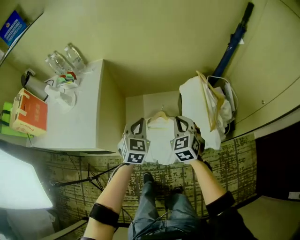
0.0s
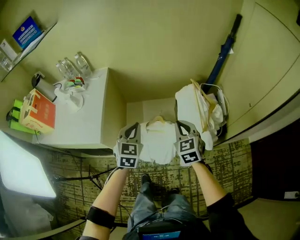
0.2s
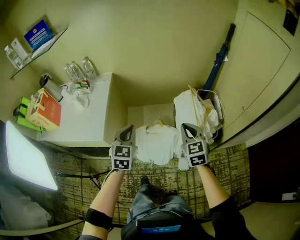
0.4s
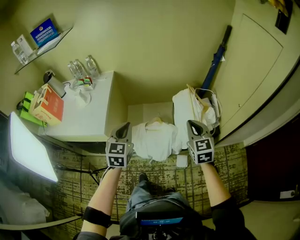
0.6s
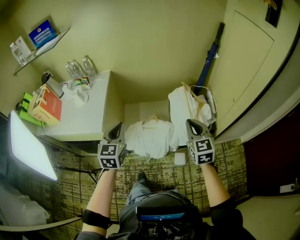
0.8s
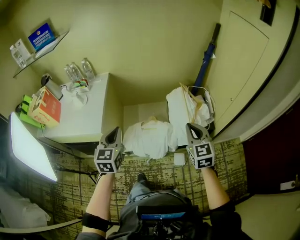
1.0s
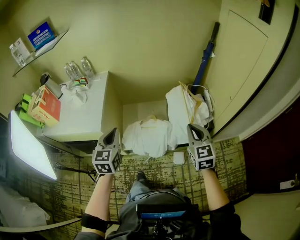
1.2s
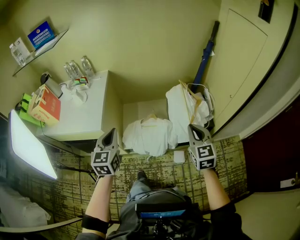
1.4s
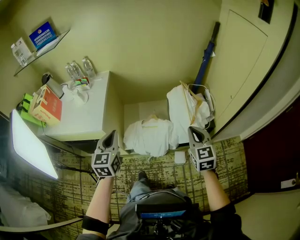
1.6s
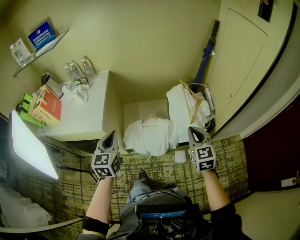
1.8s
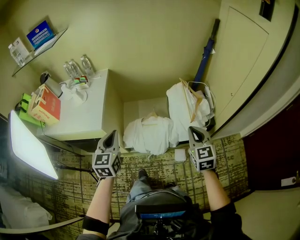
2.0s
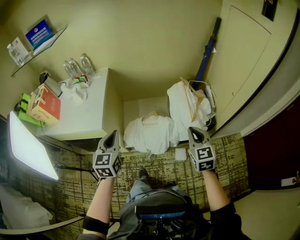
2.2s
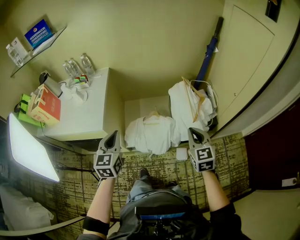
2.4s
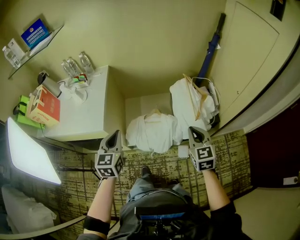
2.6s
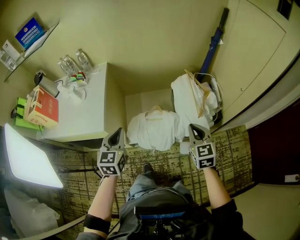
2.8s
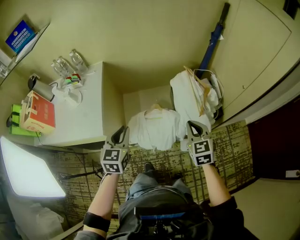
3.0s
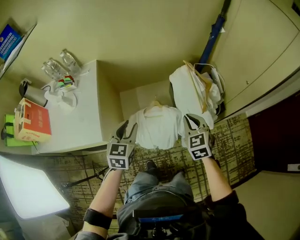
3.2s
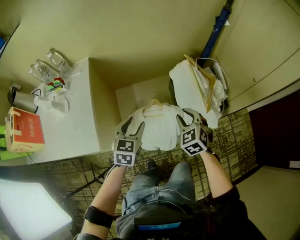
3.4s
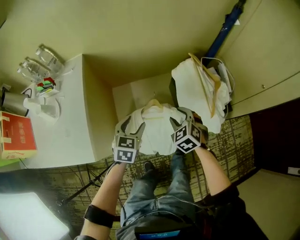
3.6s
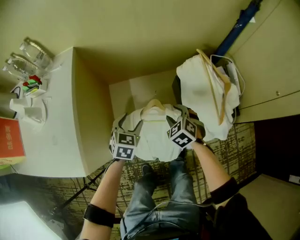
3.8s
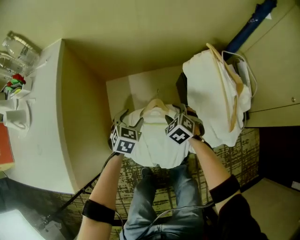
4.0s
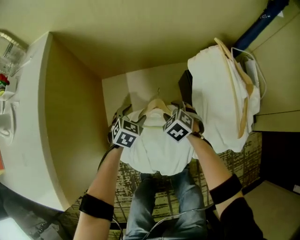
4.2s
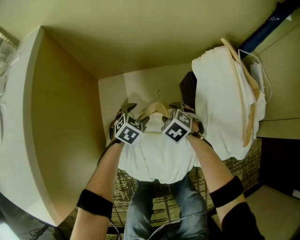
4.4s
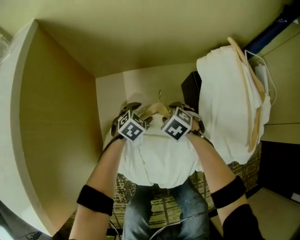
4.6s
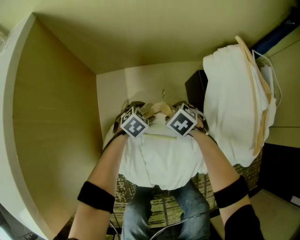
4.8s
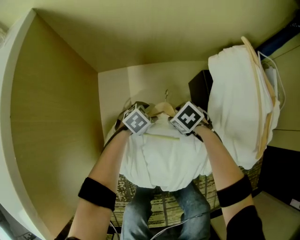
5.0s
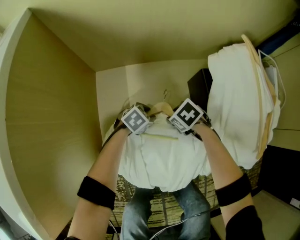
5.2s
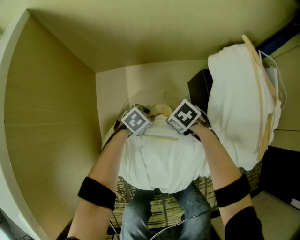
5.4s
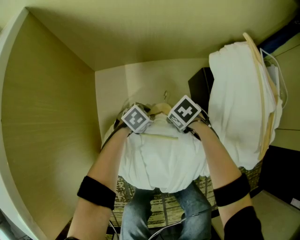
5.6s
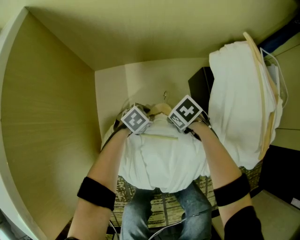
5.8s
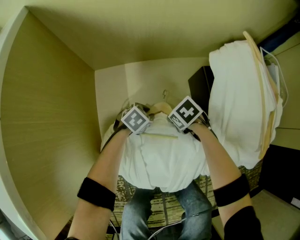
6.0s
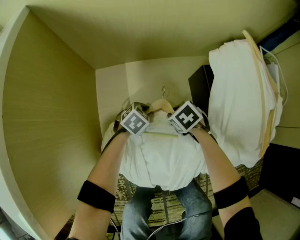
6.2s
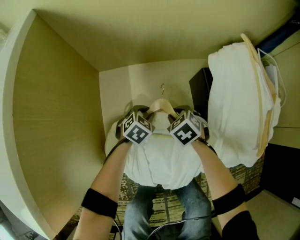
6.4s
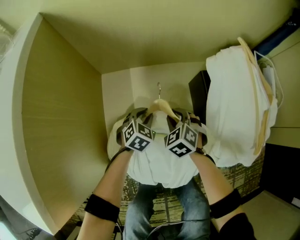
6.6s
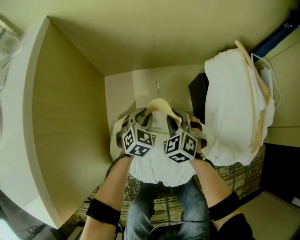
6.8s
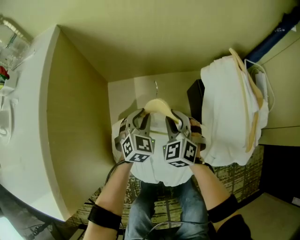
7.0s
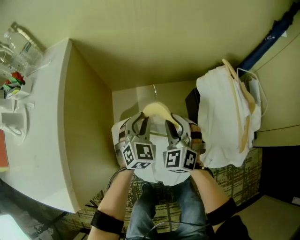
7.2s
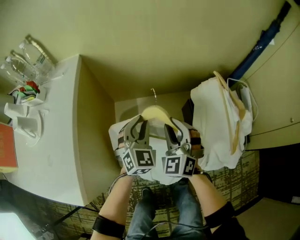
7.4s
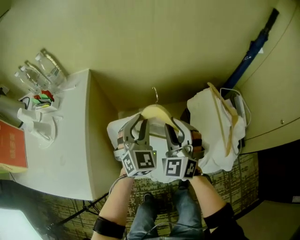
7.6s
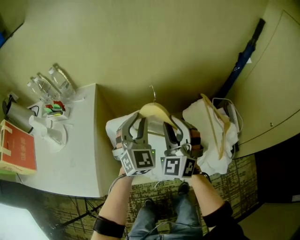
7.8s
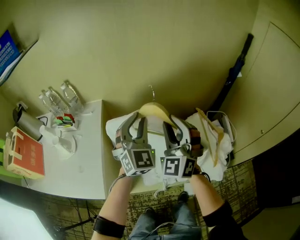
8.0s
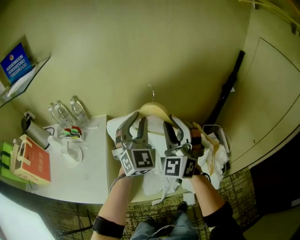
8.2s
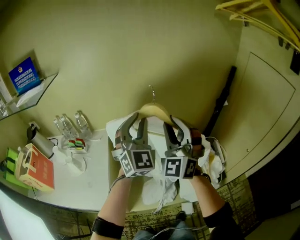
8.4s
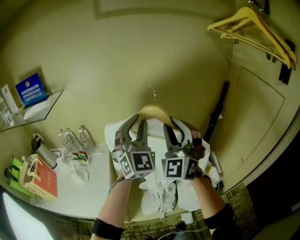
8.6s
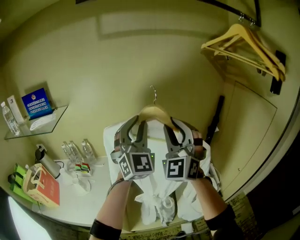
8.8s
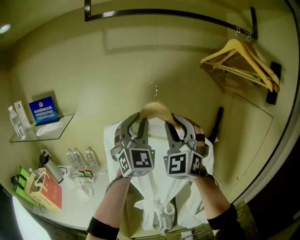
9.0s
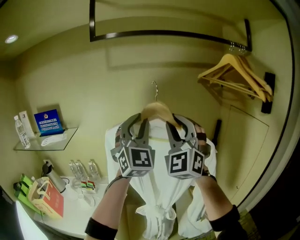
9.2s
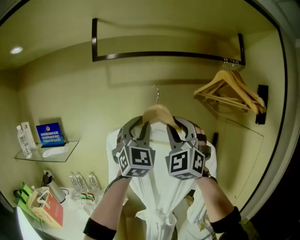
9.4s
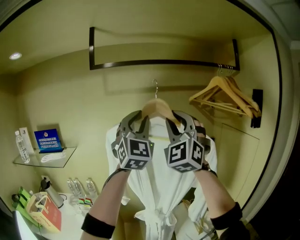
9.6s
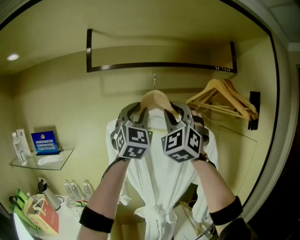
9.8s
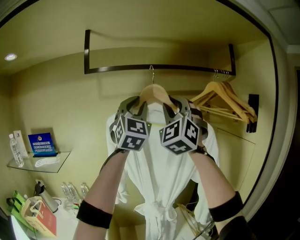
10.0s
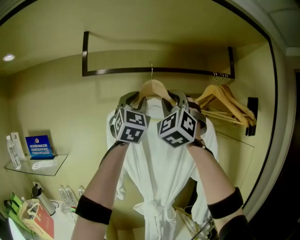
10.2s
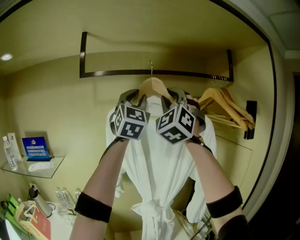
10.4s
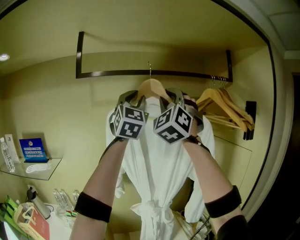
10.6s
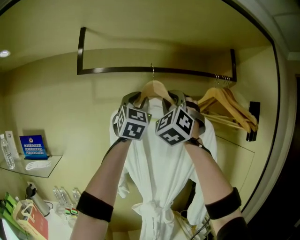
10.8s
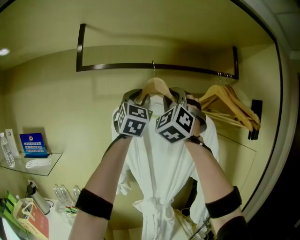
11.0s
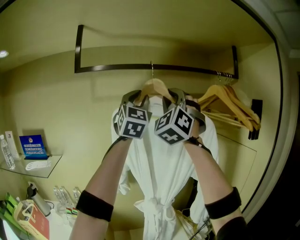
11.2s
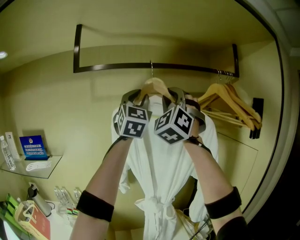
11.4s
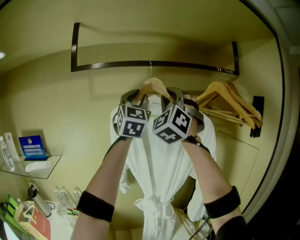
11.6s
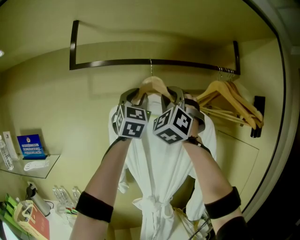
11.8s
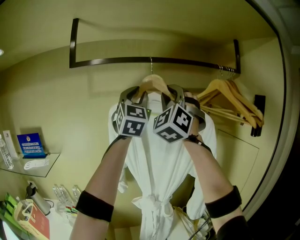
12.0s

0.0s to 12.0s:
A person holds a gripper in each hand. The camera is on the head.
0.0s to 1.6s: The right gripper moves backward, upward and to the right, approximately 30 cm. The left gripper goes approximately 30 cm backward and upward, and rotates roughly 20 degrees.
1.6s to 3.0s: The left gripper is displaced forward and downward by about 10 cm. The right gripper shifts some 10 cm forward, downward and to the left.
3.0s to 4.4s: Both grippers move downward and forward, roughly 60 cm. The left gripper swivels about 40 degrees, and opens up. Meanwhile the right gripper tips its fingers downward by approximately 40 degrees, and opens its fingers.
4.4s to 6.0s: The grippers both shift downward by roughly 10 cm. The left gripper closes its fingers. Meanwhile the right gripper rotates some 30 degrees, and closes up.
6.0s to 7.6s: Both grippers travel together upward, roughly 50 cm. The right gripper tilts its fingers approximately 60 degrees upward; the left gripper points its fingers approximately 40 degrees further upward.
7.6s to 9.0s: Both grippers travel together upward, about 60 cm. The right gripper points its fingers about 30 degrees further upward. The left gripper tips its fingers upward by approximately 40 degrees.
9.0s to 10.4s: The grippers both shift upward by some 25 cm.
10.4s to 12.0s: The grippers both shift forward by approximately 5 cm.

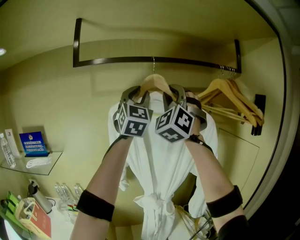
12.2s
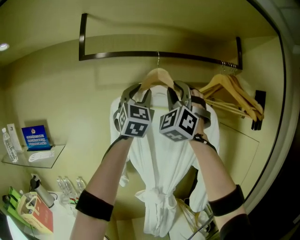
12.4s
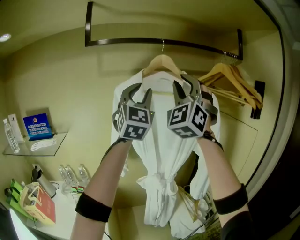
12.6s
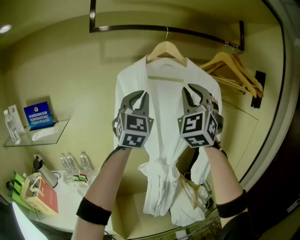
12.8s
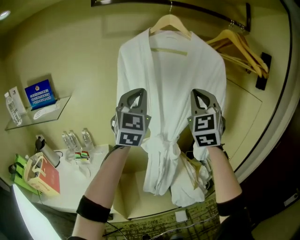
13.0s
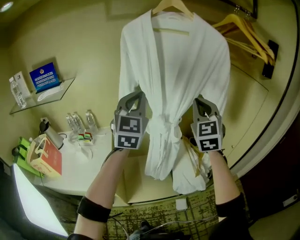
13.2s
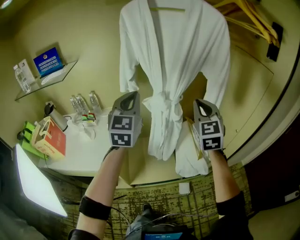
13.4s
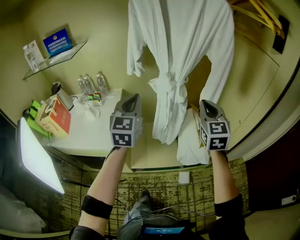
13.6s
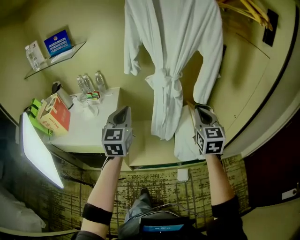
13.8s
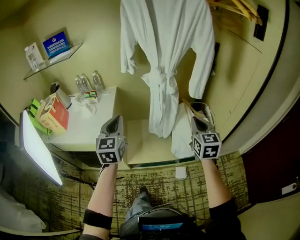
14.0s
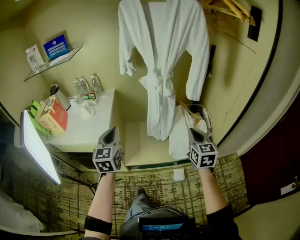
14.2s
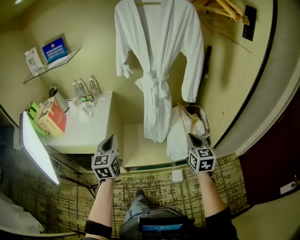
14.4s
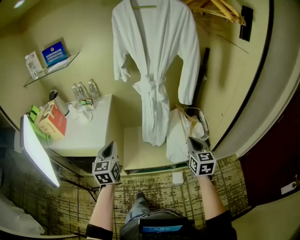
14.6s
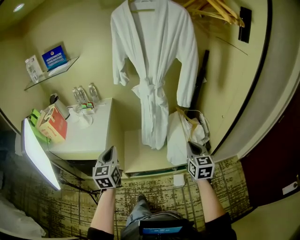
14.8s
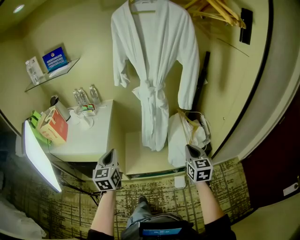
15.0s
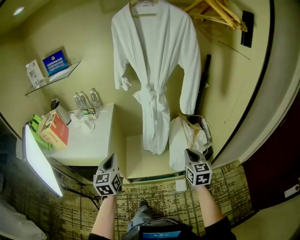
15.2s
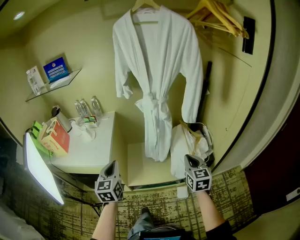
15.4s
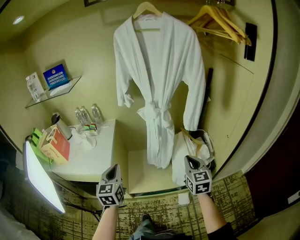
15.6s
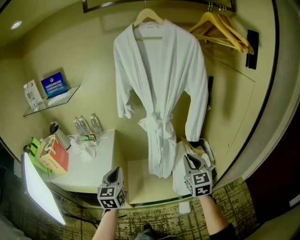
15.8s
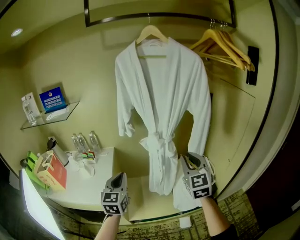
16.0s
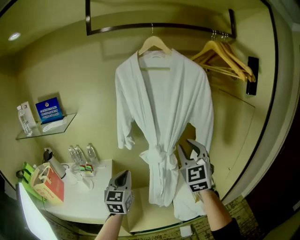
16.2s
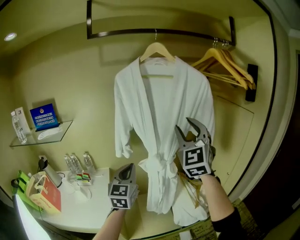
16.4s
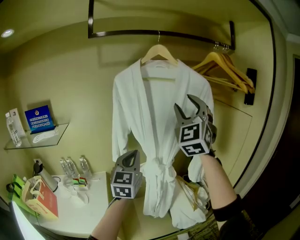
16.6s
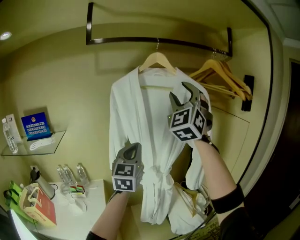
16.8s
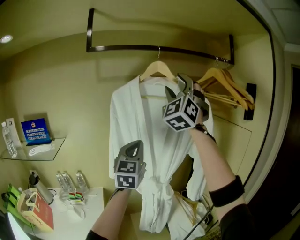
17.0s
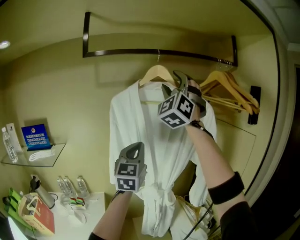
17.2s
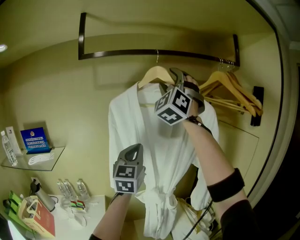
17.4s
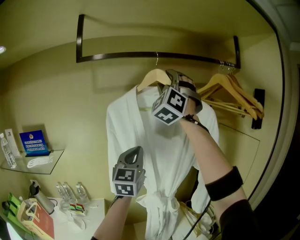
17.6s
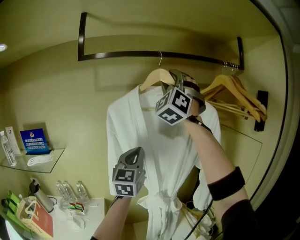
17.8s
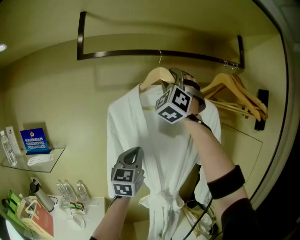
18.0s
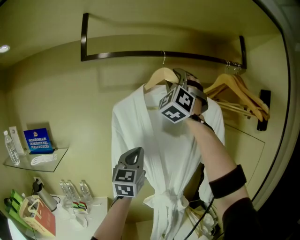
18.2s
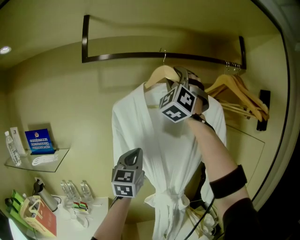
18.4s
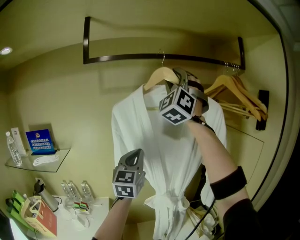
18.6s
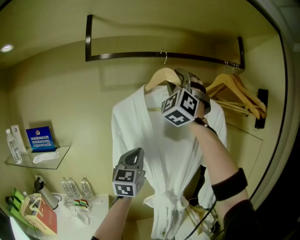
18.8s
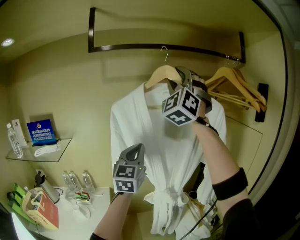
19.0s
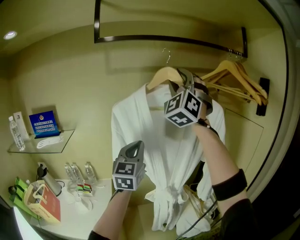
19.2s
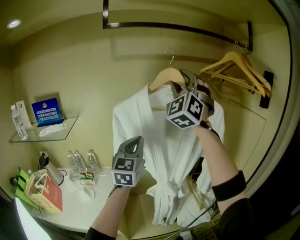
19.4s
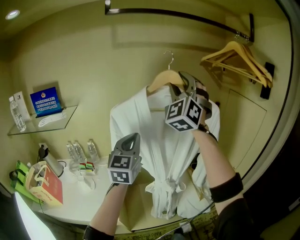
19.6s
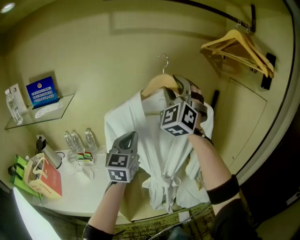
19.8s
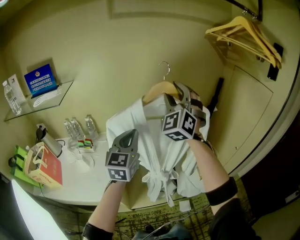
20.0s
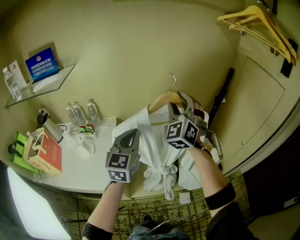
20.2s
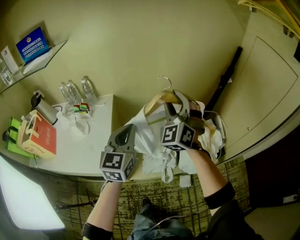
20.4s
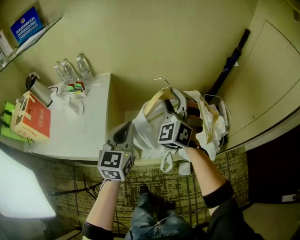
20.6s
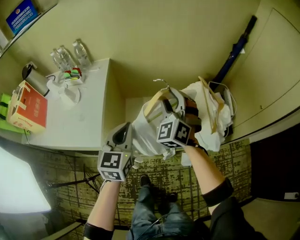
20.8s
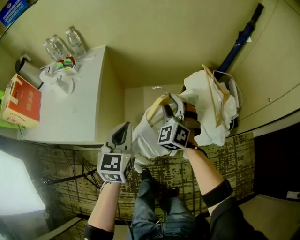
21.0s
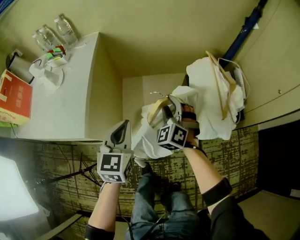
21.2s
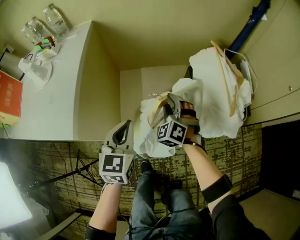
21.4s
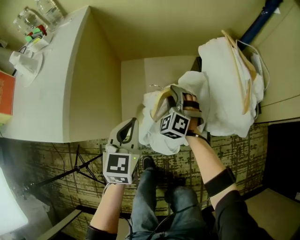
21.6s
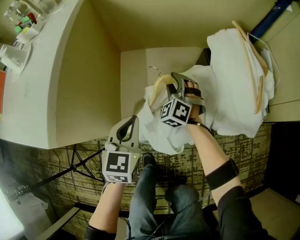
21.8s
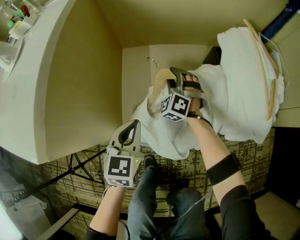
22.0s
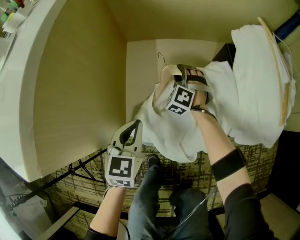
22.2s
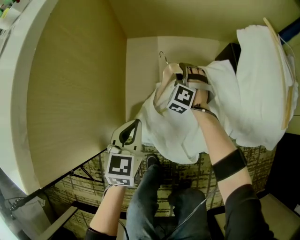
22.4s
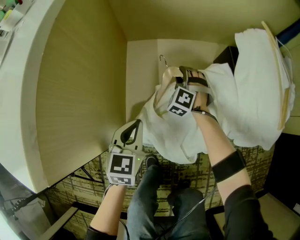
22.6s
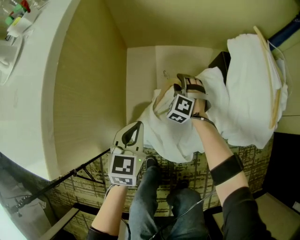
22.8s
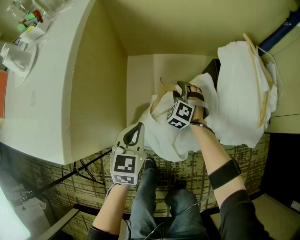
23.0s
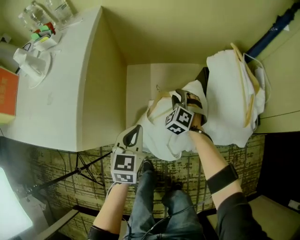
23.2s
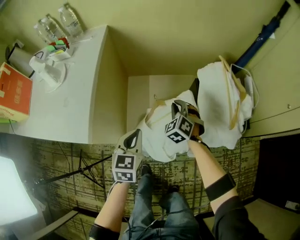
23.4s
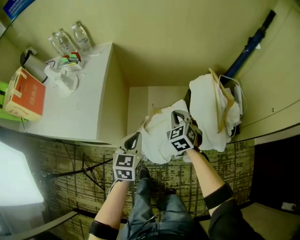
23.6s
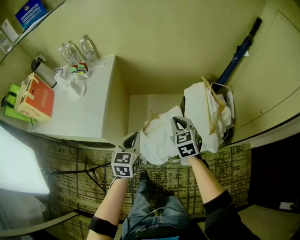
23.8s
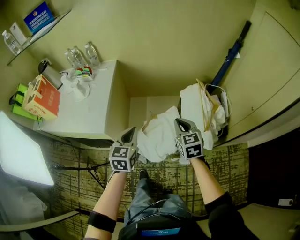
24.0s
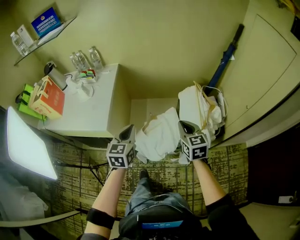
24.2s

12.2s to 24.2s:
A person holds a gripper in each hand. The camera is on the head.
12.2s to 13.8s: Both grippers travel together downward and backward, roughly 60 cm. The right gripper rolls clockwise, seen from behind, by about 60 degrees, and closes up. The left gripper angles its fingers downward, by about 30 degrees, and closes up.
13.8s to 15.2s: The right gripper travels downward and backward by about 15 cm. Meanwhile the left gripper goes approximately 15 cm backward and downward.
15.2s to 16.6s: The left gripper is displaced forward and upward by some 40 cm, and changes its angle by some 40 degrees, while the right gripper goes some 60 cm upward and forward, angles its fingers upward, by approximately 40 degrees, and opens up.
16.6s to 18.2s: The right gripper is displaced upward and forward by approximately 25 cm, and turns by some 20 degrees; the left gripper heads forward and upward, covering roughly 15 cm.
18.2s to 19.8s: The left gripper travels downward, backward and to the left by about 20 cm. Meanwhile the right gripper travels downward and backward by roughly 25 cm.
19.8s to 21.2s: The left gripper moves downward, roughly 50 cm, and turns by about 30 degrees. The right gripper is displaced downward by some 80 cm, and points its fingers about 40 degrees further downward.
21.2s to 22.6s: The right gripper goes roughly 40 cm downward and forward, and changes its angle by approximately 20 degrees. The left gripper heads downward, covering about 30 cm.
22.6s to 24.2s: The left gripper goes some 40 cm upward, while the right gripper shifts approximately 60 cm upward and backward, twists about 60 degrees clockwise, seen from behind, and closes up.
